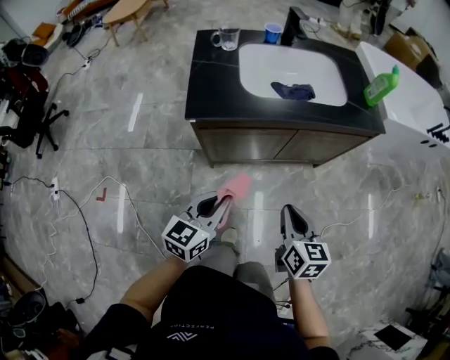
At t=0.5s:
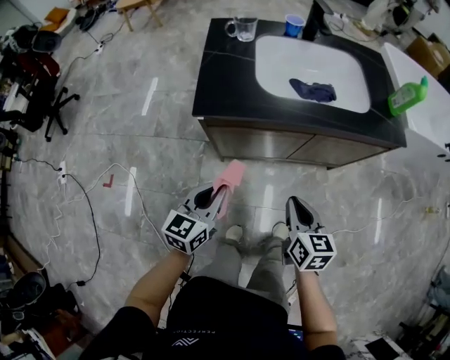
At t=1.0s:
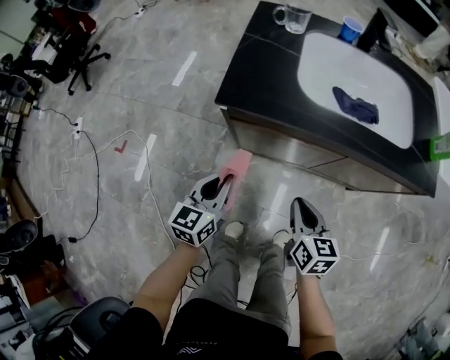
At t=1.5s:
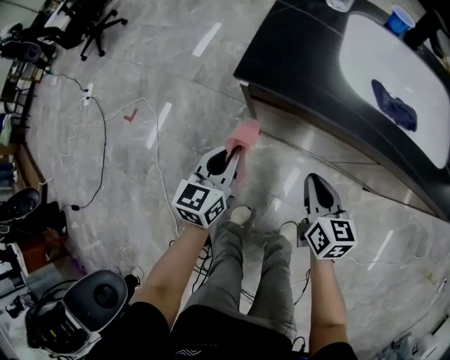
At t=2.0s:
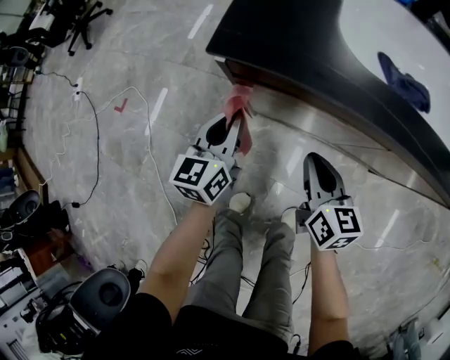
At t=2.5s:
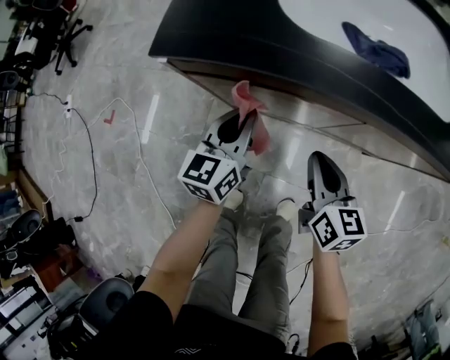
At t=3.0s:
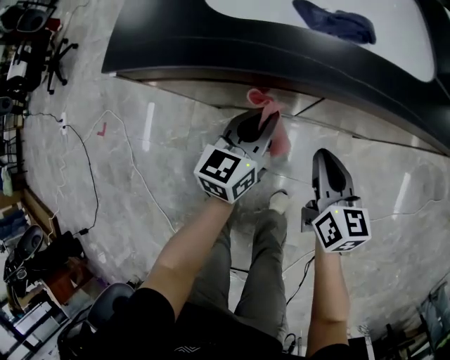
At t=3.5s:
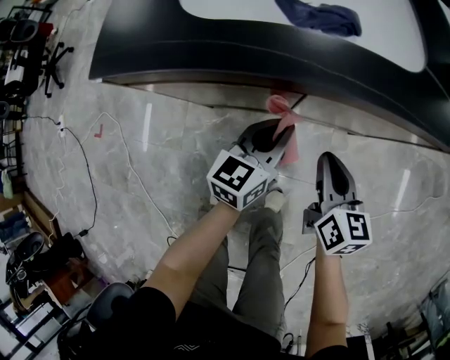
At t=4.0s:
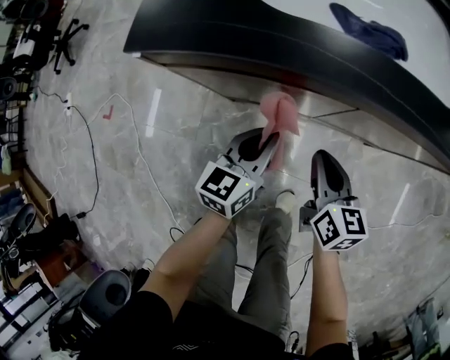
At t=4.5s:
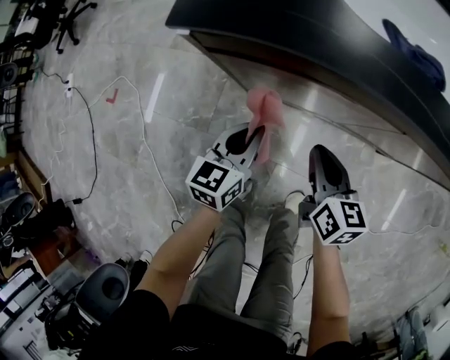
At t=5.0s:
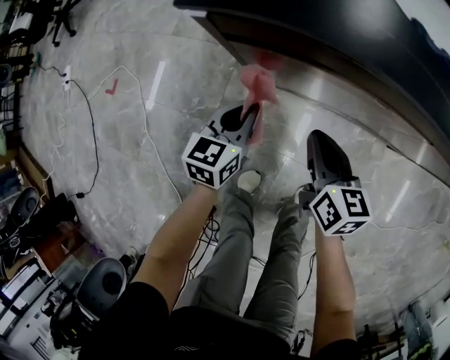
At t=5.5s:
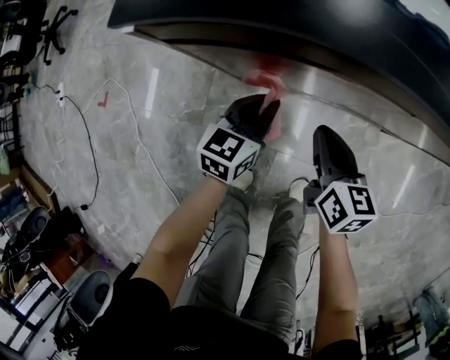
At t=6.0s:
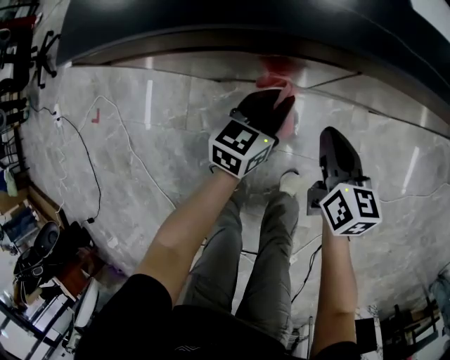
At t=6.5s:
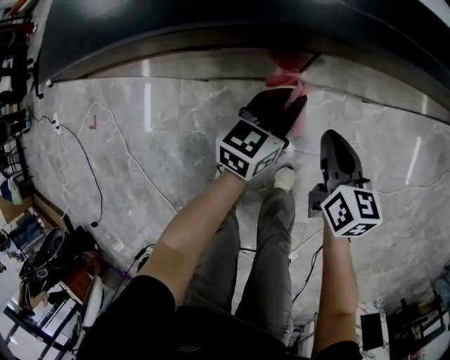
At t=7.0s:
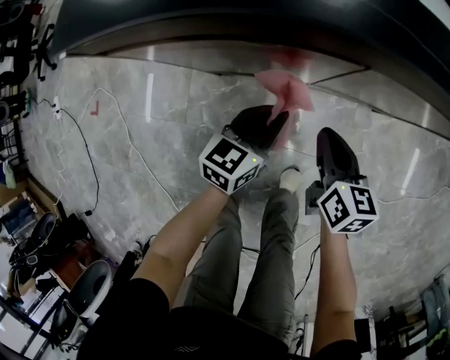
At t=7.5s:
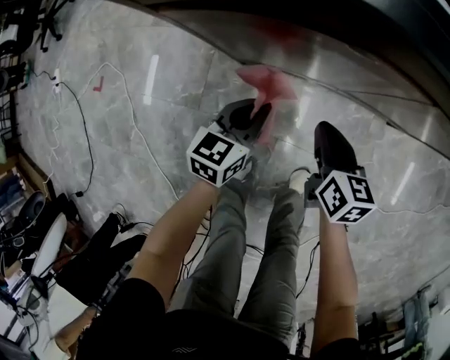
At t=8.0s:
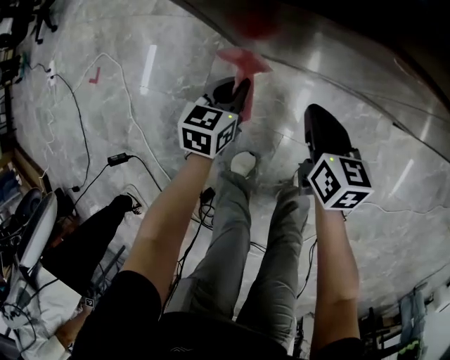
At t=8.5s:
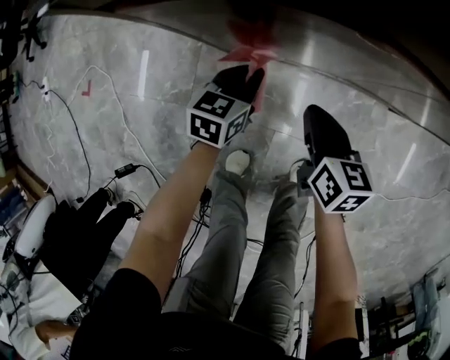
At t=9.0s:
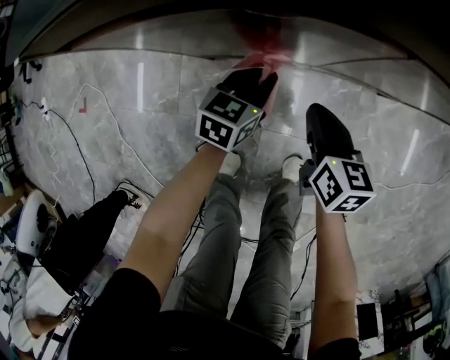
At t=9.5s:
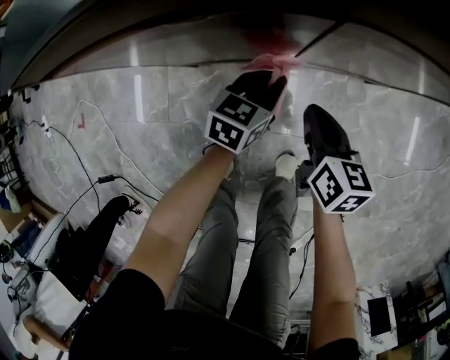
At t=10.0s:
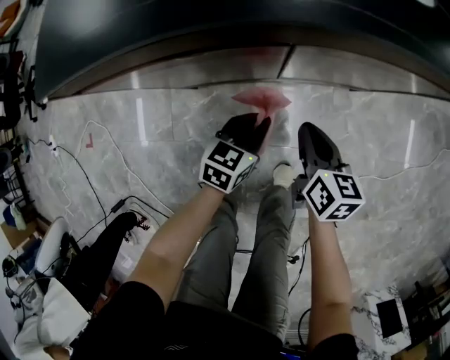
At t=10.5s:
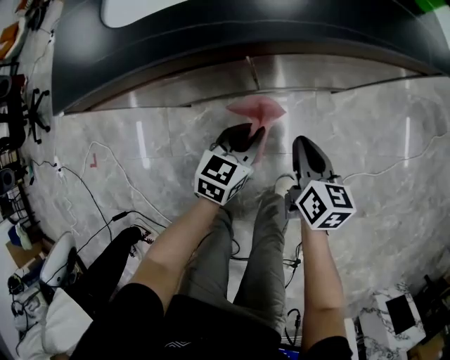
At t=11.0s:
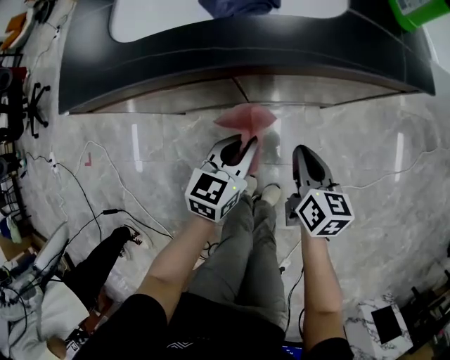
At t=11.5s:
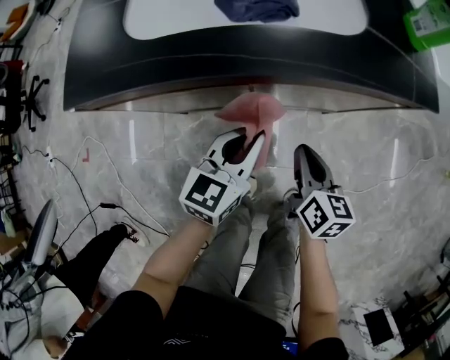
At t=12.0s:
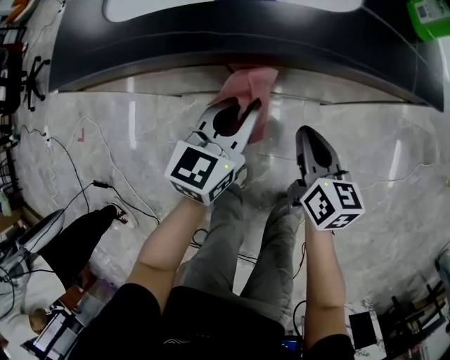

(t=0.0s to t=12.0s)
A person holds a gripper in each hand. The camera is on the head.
t=0.0s - t=2.0s: The left gripper changes place by some 25 cm, and changes its angle by roughly 40 degrees, while the right gripper ends up about 25 cm from where it was, and rotates about 30 degrees.
t=2.0s - t=4.0s: The right gripper moves to the right, roughly 15 cm. The left gripper is displaced to the right by some 20 cm, and changes its angle by some 20 degrees.
t=4.0s - t=6.0s: Both grippers travel together downward, roughly 10 cm. The left gripper reaches roughly 20 cm to the left, then returns. Meanwhile the right gripper travels to the left and back again, approximately 15 cm each way.
t=6.0s - t=8.0s: Both grippers travel together to the left and downward, some 20 cm. The left gripper changes its angle by about 20 degrees.
t=8.0s - t=10.0s: Both grippers travel together to the right, approximately 25 cm. The right gripper swivels some 20 degrees; the left gripper rotates approximately 30 degrees.
t=10.0s - t=12.0s: The right gripper is displaced to the right and upward by some 15 cm; the left gripper goes roughly 20 cm upward and forward, and swivels about 20 degrees.

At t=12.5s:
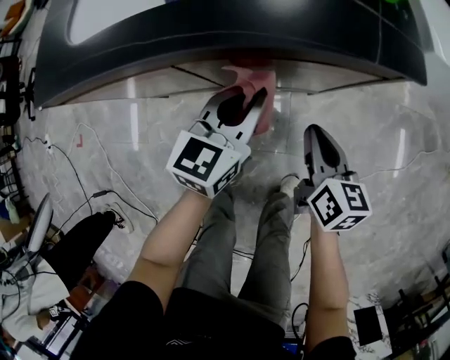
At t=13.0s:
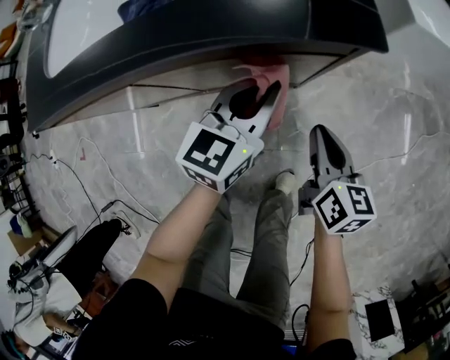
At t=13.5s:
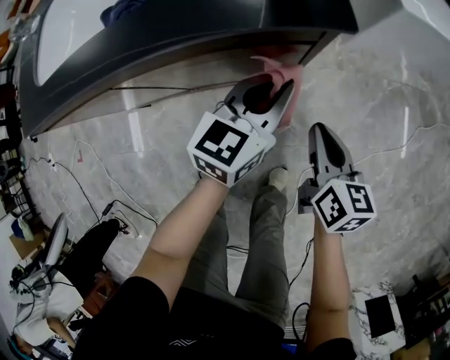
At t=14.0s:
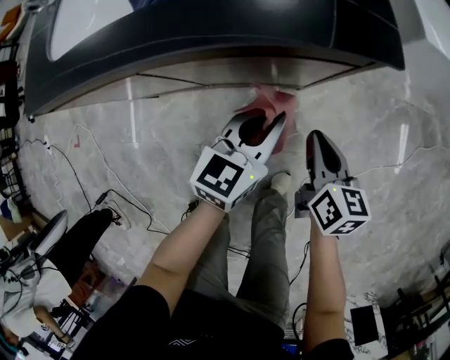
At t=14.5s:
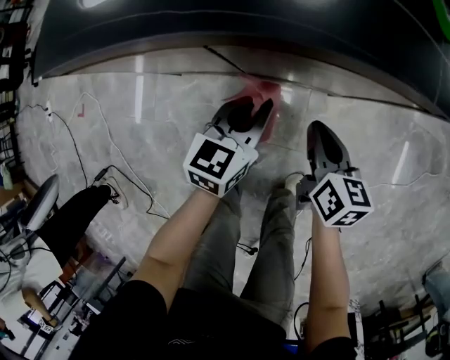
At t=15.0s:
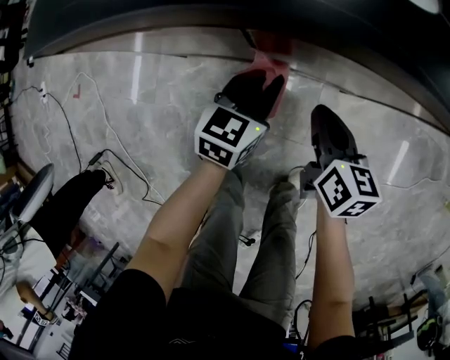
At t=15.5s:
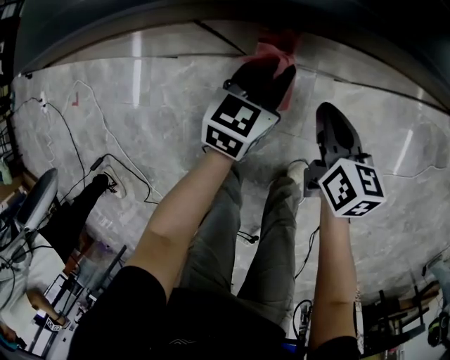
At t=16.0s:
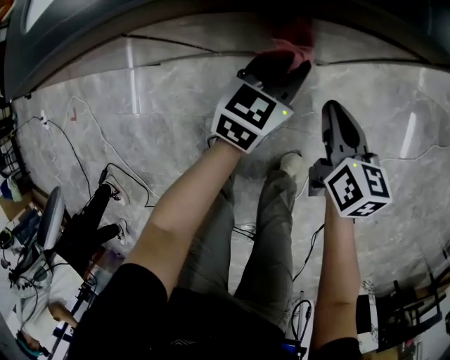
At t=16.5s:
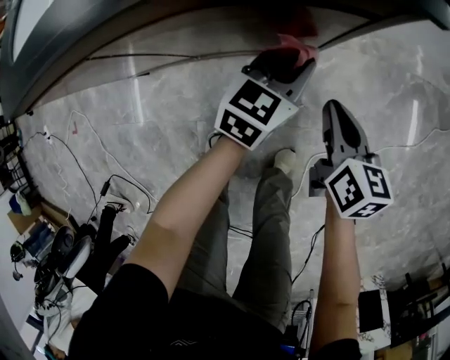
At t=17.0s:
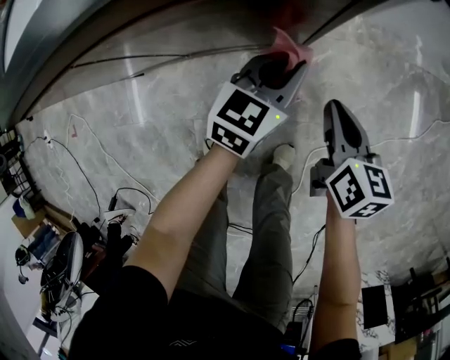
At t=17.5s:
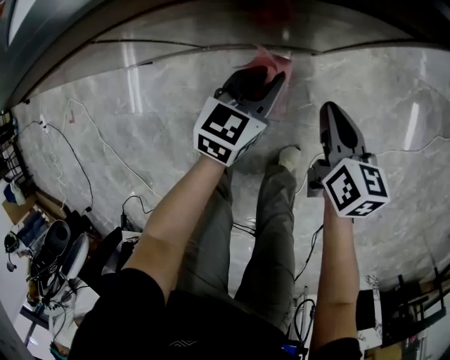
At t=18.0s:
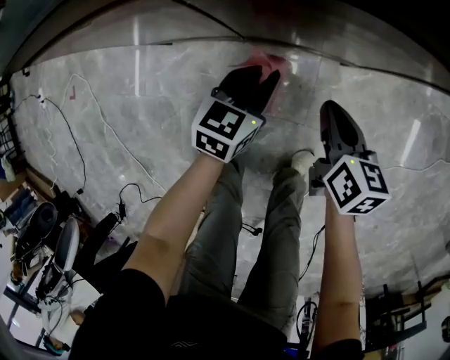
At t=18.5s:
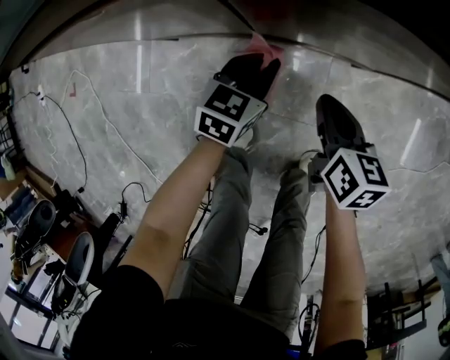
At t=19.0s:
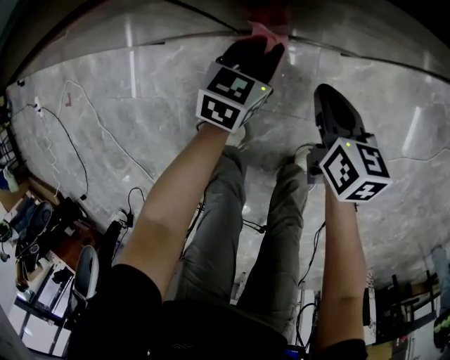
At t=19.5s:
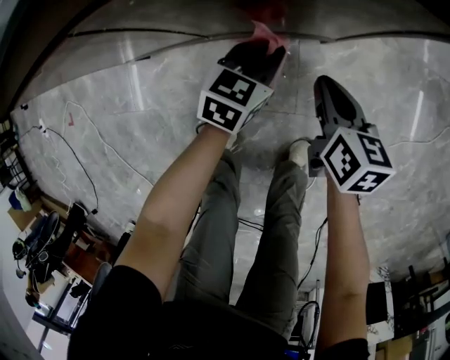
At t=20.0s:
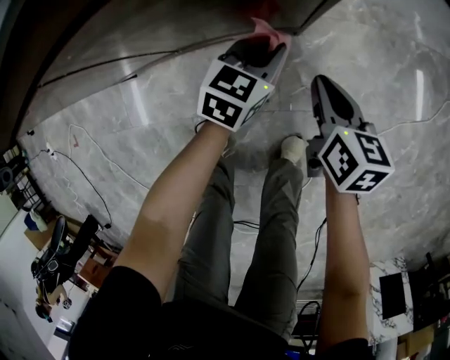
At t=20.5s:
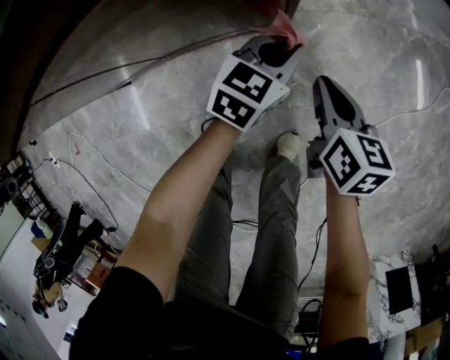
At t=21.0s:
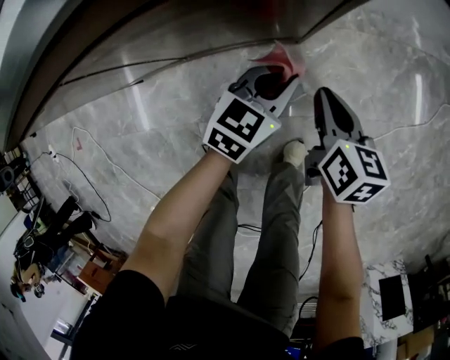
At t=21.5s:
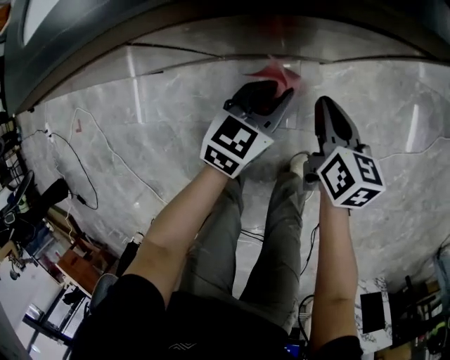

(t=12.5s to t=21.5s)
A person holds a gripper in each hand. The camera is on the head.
t=12.5s - t=14.5s: The right gripper travels to the left by approximately 5 cm, while the left gripper travels downward by approximately 5 cm, and reaches approximately 15 cm to the right, then returns.
t=14.5s - t=17.0s: Both grippers move to the right, about 20 cm.
t=17.0s - t=19.5s: The right gripper moves to the left, roughly 10 cm. Meanwhile the left gripper goes roughly 15 cm to the left and downward.
t=19.5s - t=21.5s: The right gripper moves upward, about 5 cm, and travels to the right and back again, roughly 10 cm each way, while the left gripper travels upward by some 10 cm, and goes to the right and returns, roughly 15 cm each way.

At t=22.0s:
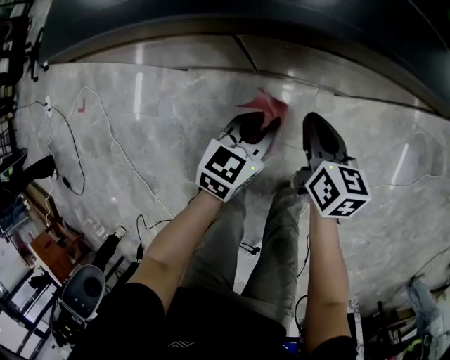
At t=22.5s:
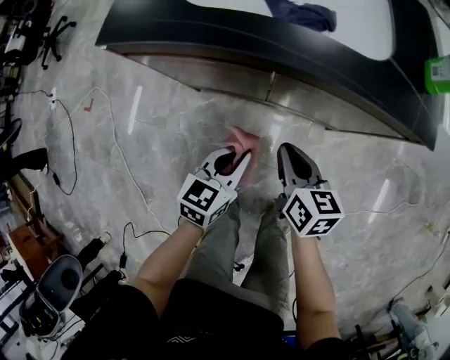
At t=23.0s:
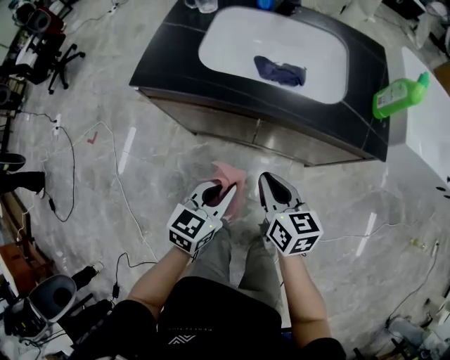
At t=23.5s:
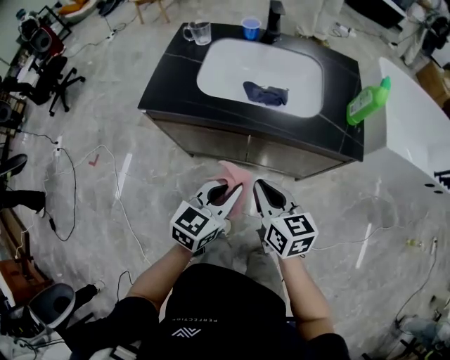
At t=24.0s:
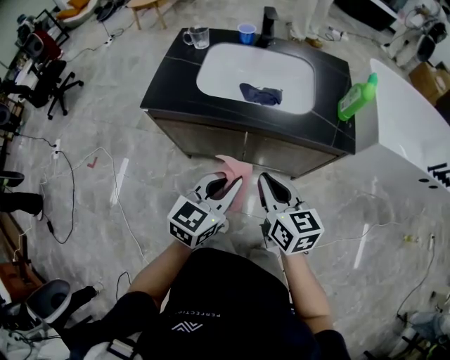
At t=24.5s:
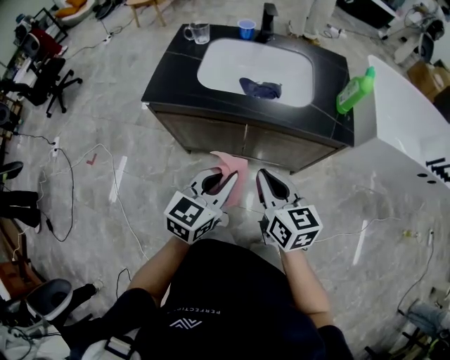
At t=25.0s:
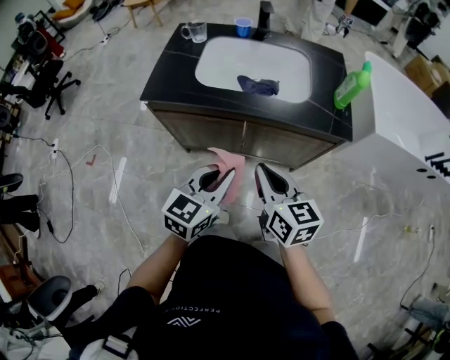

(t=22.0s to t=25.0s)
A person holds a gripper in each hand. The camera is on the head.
t=22.0s - t=23.5s: The grippers both shift upward by roughly 25 cm. The right gripper swivels approximately 20 degrees.
t=23.5s - t=25.0s: The right gripper moves upward, about 5 cm; the left gripper shifts by some 5 cm.

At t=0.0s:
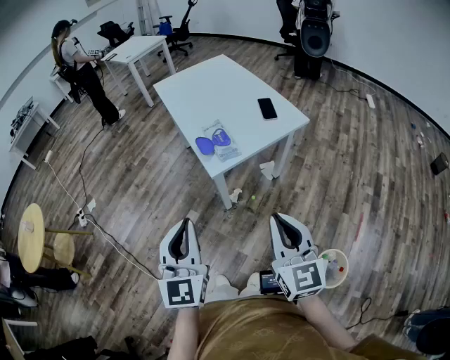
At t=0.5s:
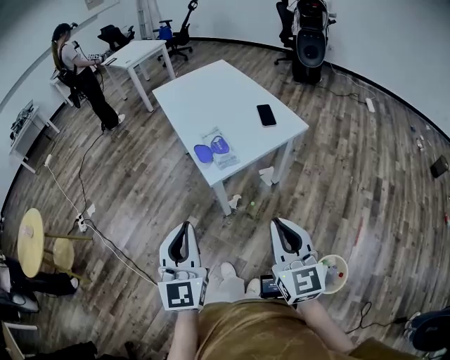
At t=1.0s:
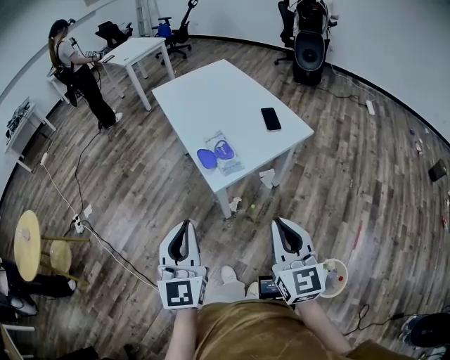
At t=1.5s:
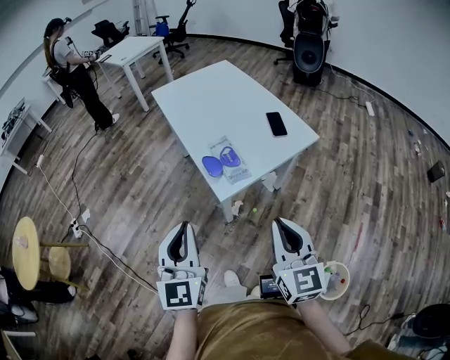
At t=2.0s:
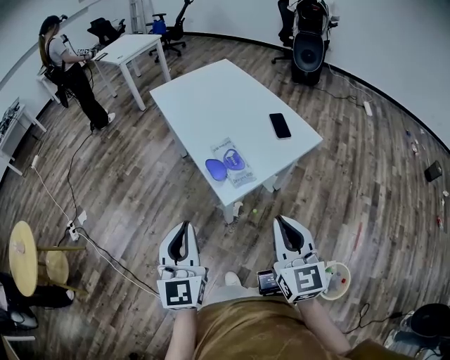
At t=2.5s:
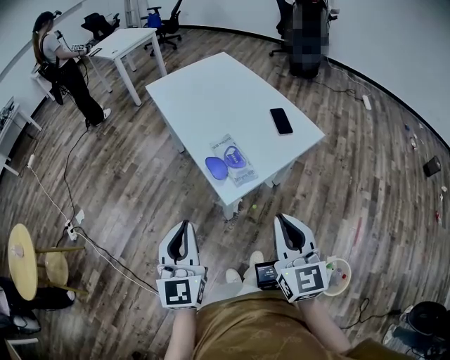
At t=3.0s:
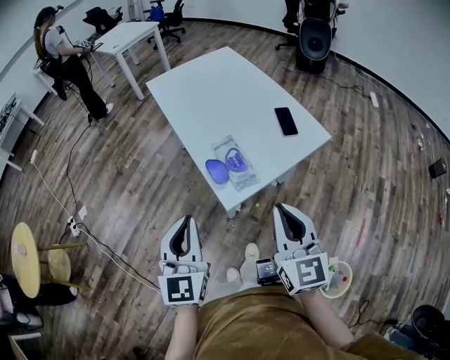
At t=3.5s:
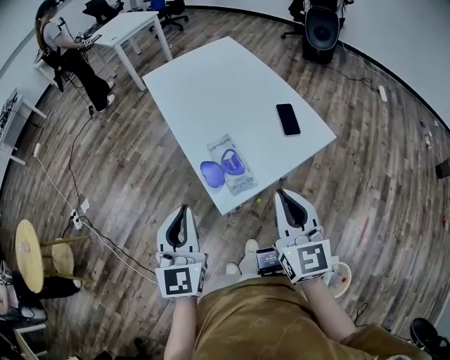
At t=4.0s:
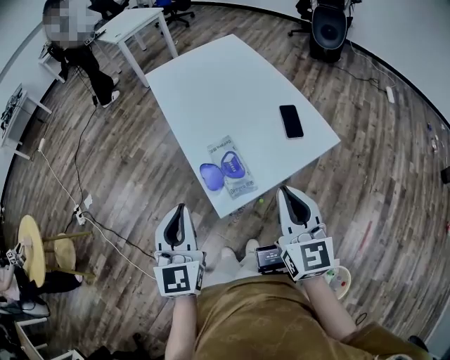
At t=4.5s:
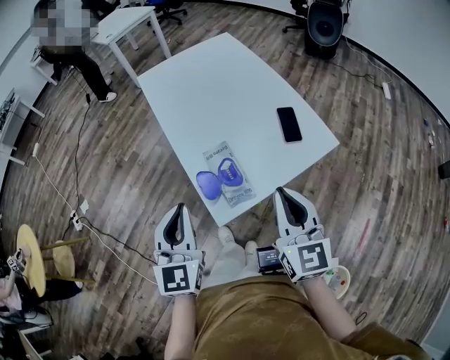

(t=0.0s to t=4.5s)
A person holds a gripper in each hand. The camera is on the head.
t=0.0s - t=2.0s: The grippers both shift forward and to the left by roughly 15 cm.
t=2.0s - t=4.5s: The grippers both shift forward by about 20 cm.
